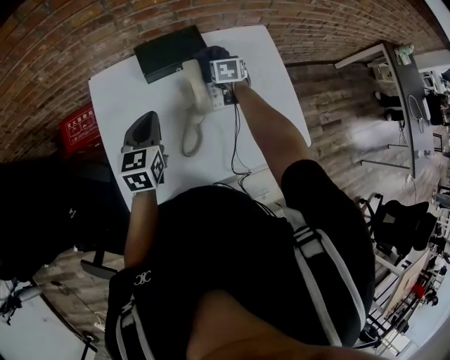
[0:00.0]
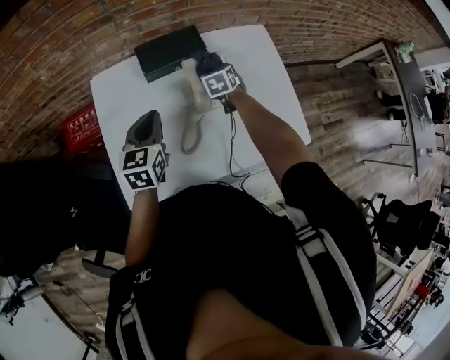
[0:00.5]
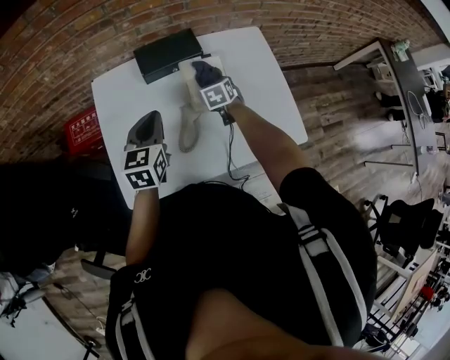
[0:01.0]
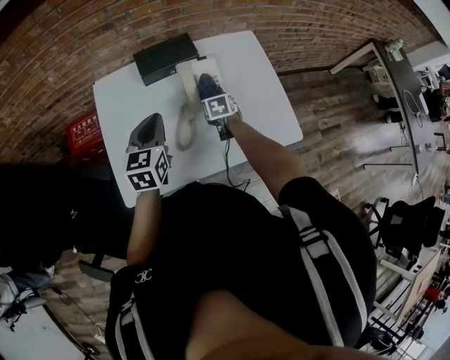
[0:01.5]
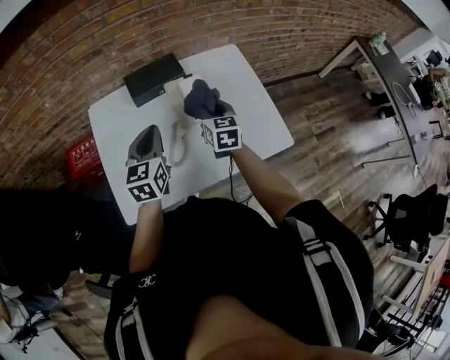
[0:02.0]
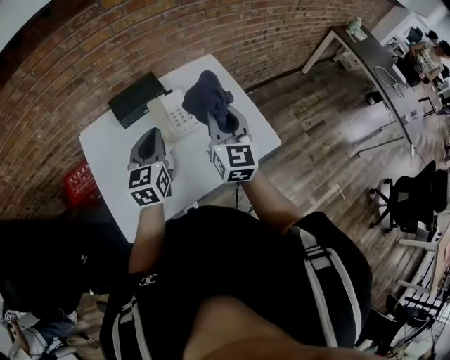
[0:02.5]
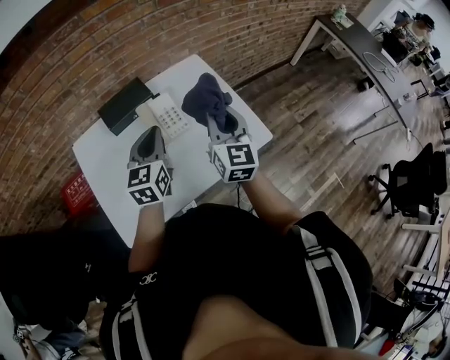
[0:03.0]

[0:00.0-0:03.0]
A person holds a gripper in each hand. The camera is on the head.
0:00.0 to 0:01.5: The right gripper moves backward, about 15 cm; the left gripper moves backward, some 5 cm.
0:01.5 to 0:03.0: The right gripper shifts some 35 cm upward and to the right, and tips its fingers upward by some 50 degrees; the left gripper is displaced to the right and upward by roughly 15 cm.

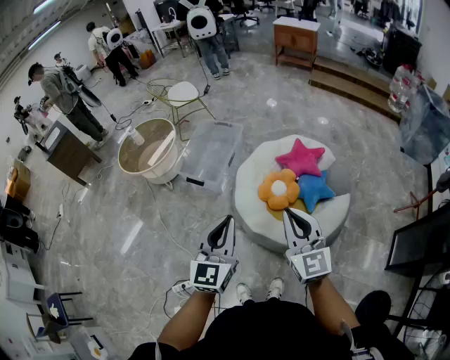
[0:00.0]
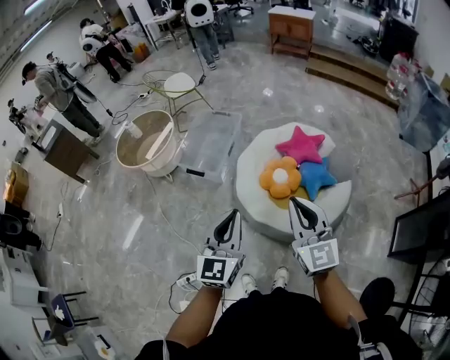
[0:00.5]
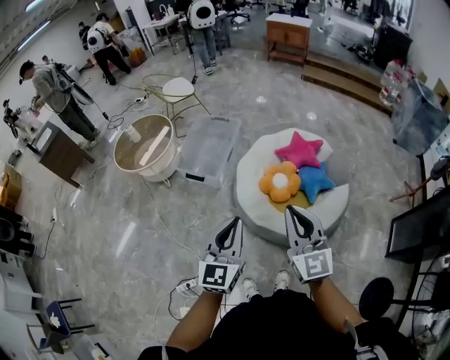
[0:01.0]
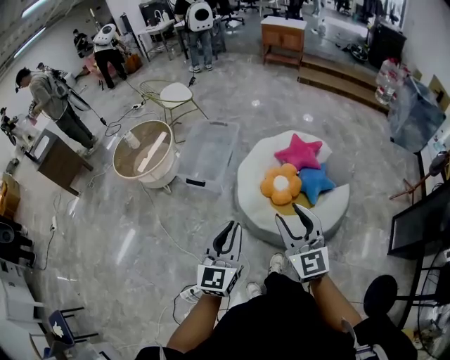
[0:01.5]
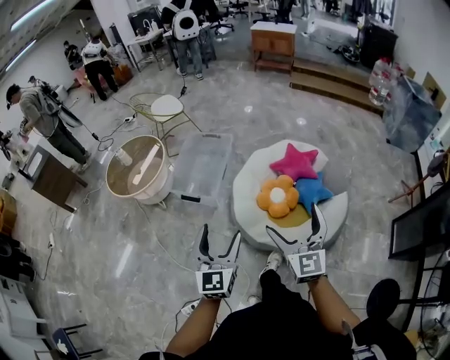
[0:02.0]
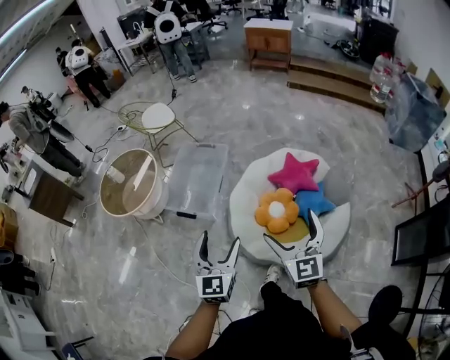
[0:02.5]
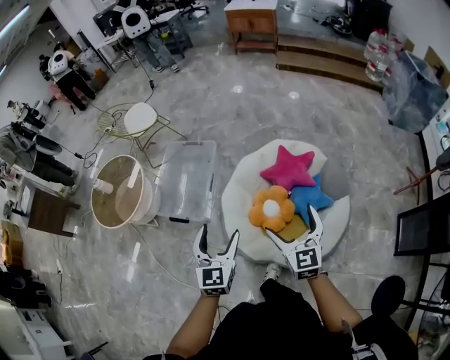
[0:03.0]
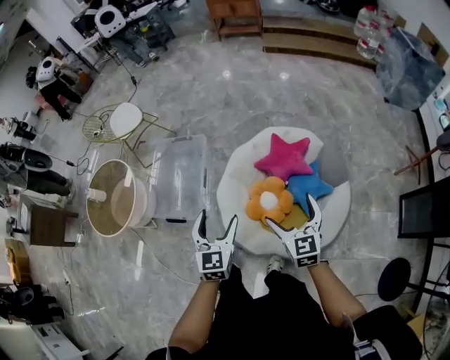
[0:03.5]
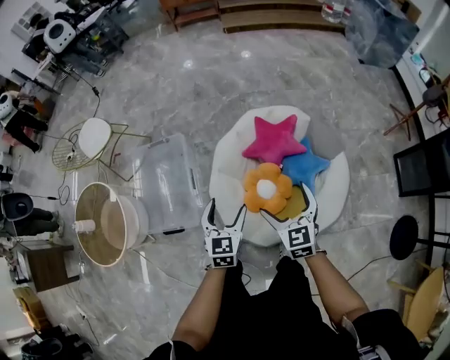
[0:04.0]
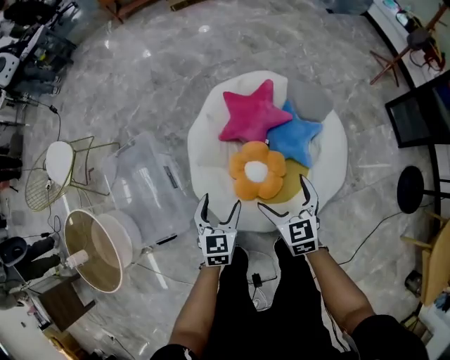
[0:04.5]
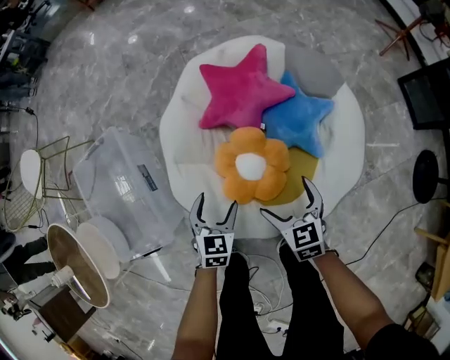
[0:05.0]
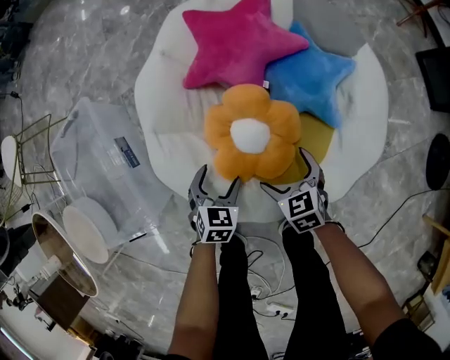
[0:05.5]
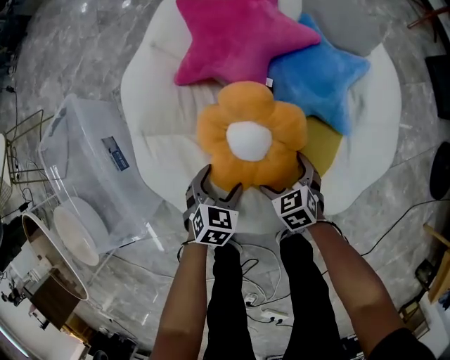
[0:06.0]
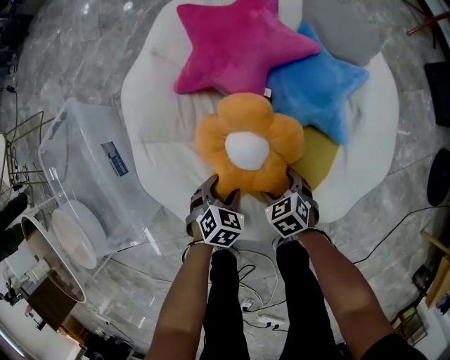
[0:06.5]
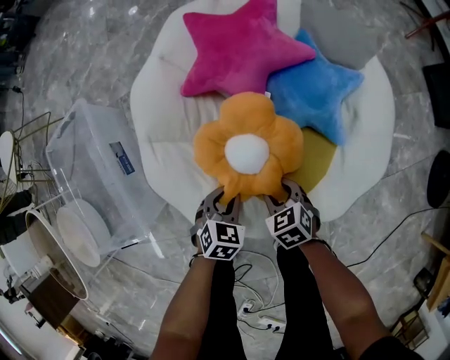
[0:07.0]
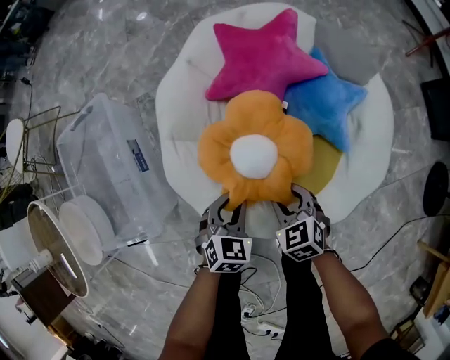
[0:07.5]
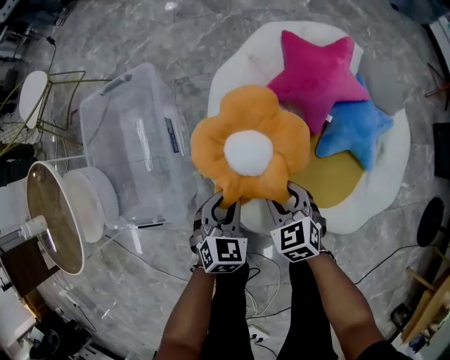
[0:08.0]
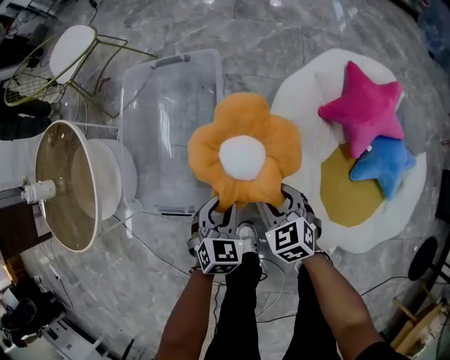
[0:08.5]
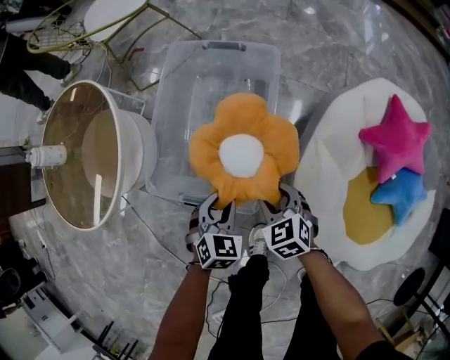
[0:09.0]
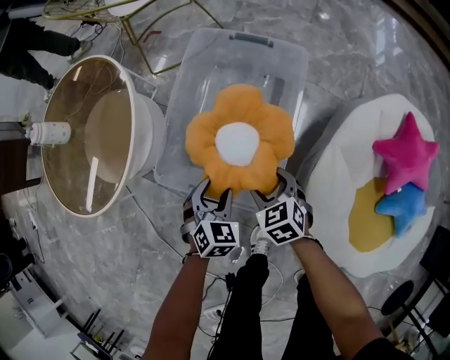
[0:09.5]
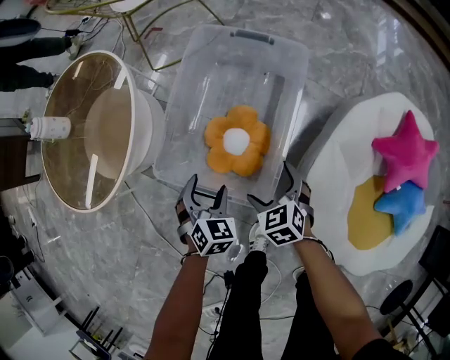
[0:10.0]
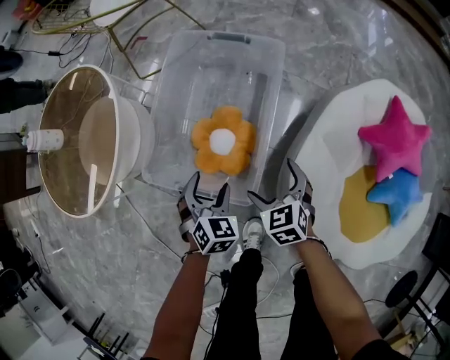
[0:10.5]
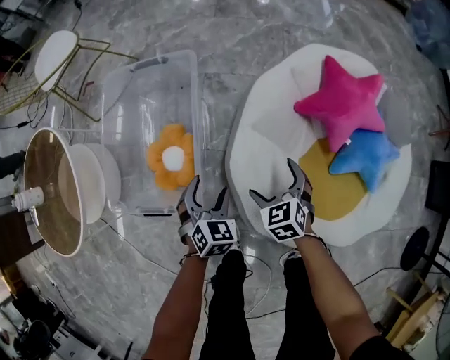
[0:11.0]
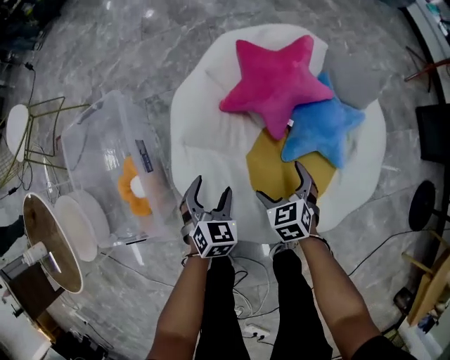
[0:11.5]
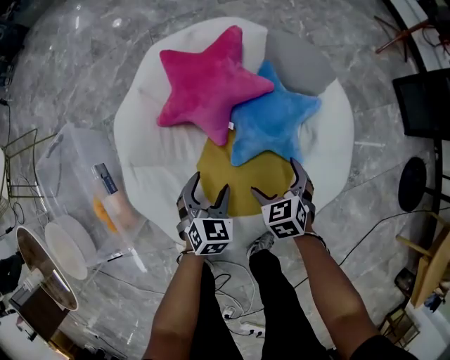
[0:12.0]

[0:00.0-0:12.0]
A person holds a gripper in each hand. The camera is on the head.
0:00.0 to 0:02.0: The right gripper travels to the left and forward by approximately 10 cm, and opens. The left gripper travels to the left, forward and downward by roughly 15 cm, and opens up.
0:02.0 to 0:04.0: The pair of grippers is taken forward, roughly 50 cm. The two grippers go about 25 cm downward. The left gripper swivels some 40 degrees. The right gripper changes its angle by about 30 degrees.
0:04.0 to 0:06.0: Both grippers travel together downward, about 70 cm. The right gripper angles its fingers downward, by about 30 degrees, while the left gripper points its fingers roughly 30 degrees further downward.
0:06.0 to 0:08.0: The left gripper travels upward and to the left by about 25 cm, changes its angle by roughly 20 degrees, and closes. The right gripper moves to the left and upward, some 30 cm, swivels some 20 degrees, and closes its fingers.
0:08.0 to 0:10.0: The pair of grippers is taken some 40 cm. The left gripper changes its angle by about 40 degrees, and opens up; the right gripper rotates some 30 degrees, and opens its fingers.
0:10.0 to 0:12.0: The two grippers travel together, some 70 cm. The right gripper rotates some 50 degrees. Meanwhile the left gripper swivels roughly 50 degrees.

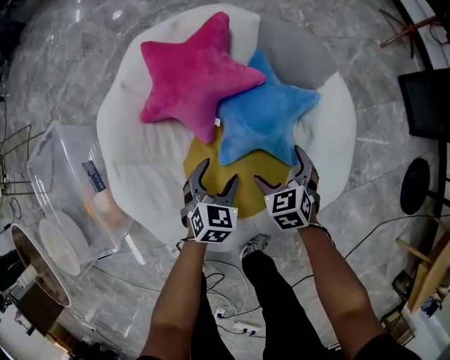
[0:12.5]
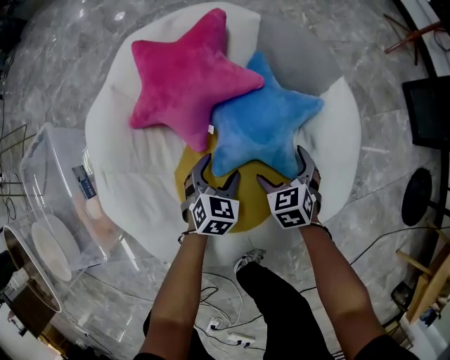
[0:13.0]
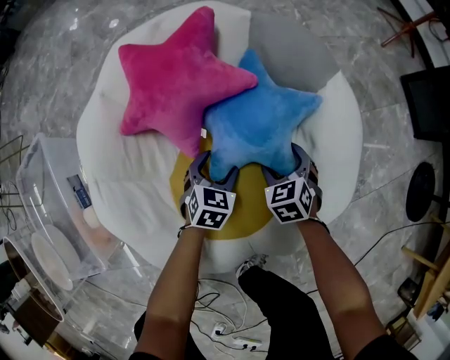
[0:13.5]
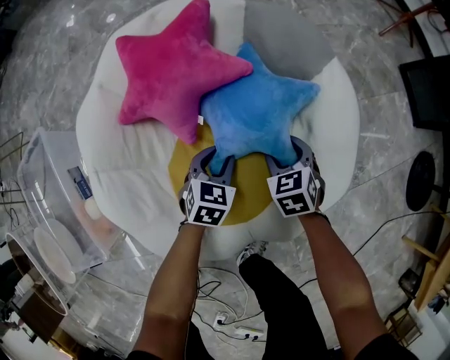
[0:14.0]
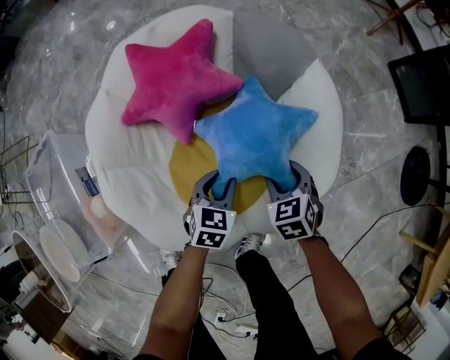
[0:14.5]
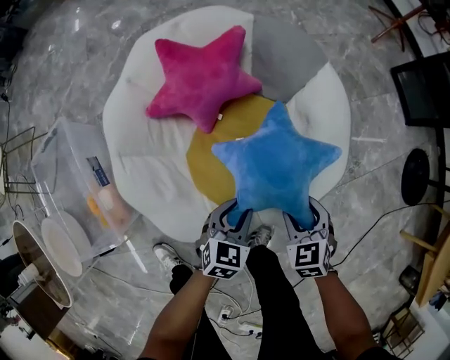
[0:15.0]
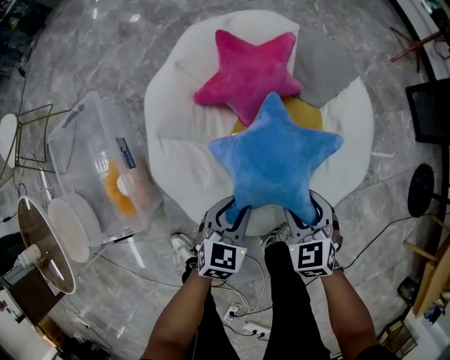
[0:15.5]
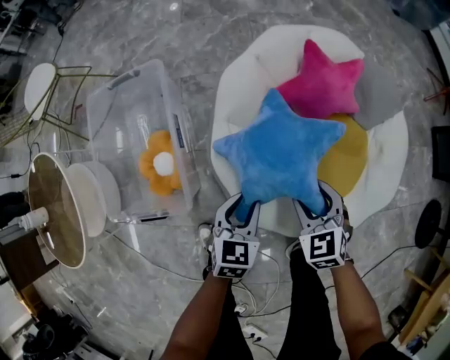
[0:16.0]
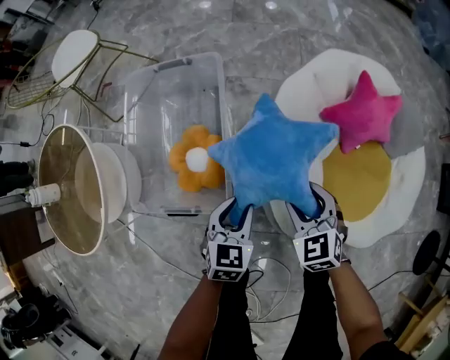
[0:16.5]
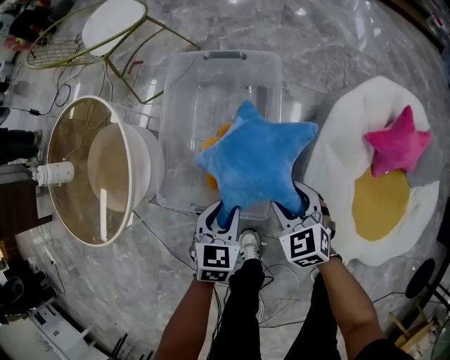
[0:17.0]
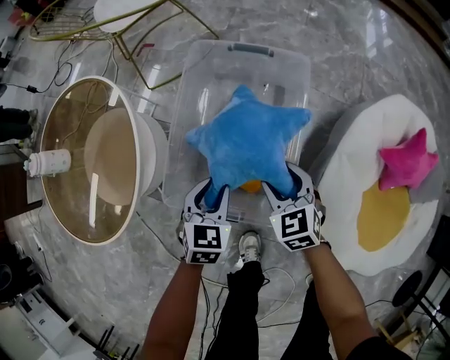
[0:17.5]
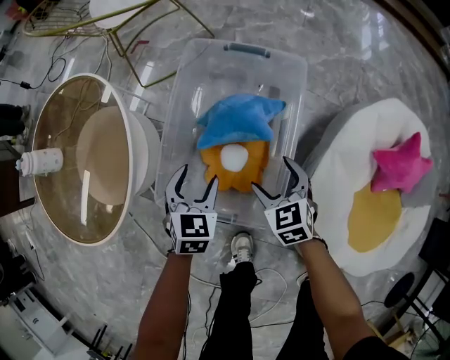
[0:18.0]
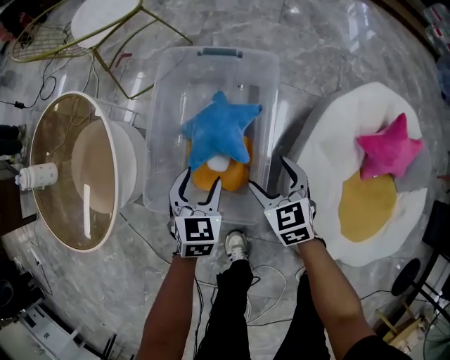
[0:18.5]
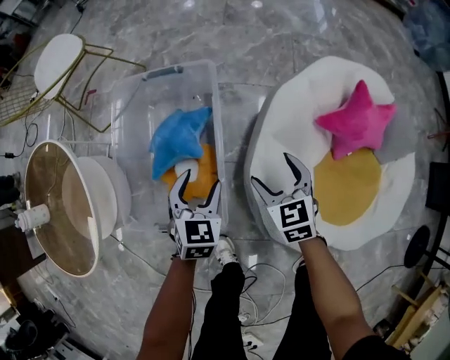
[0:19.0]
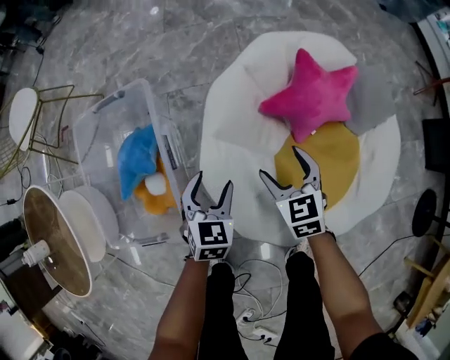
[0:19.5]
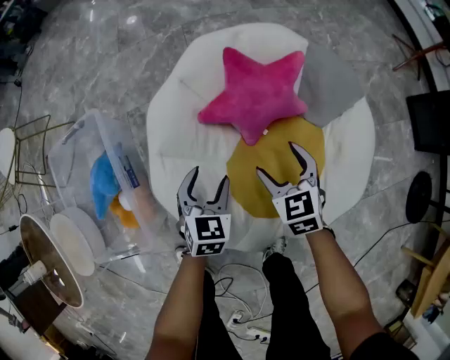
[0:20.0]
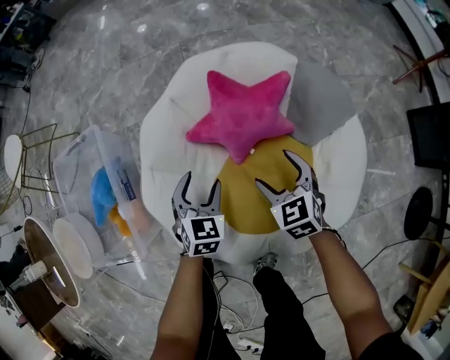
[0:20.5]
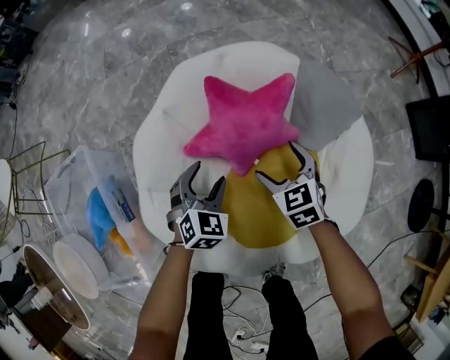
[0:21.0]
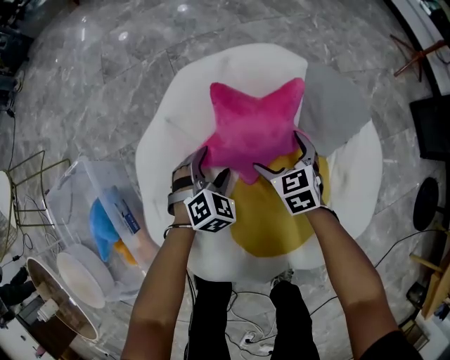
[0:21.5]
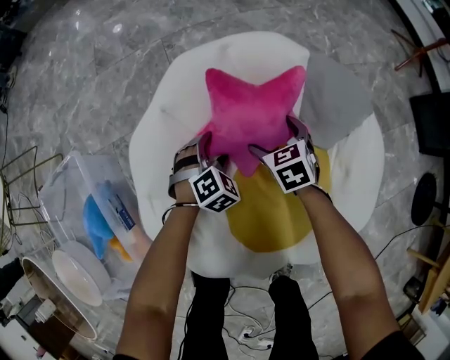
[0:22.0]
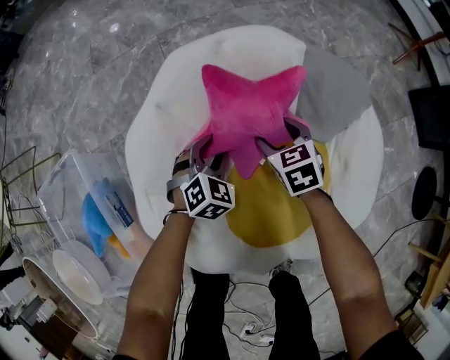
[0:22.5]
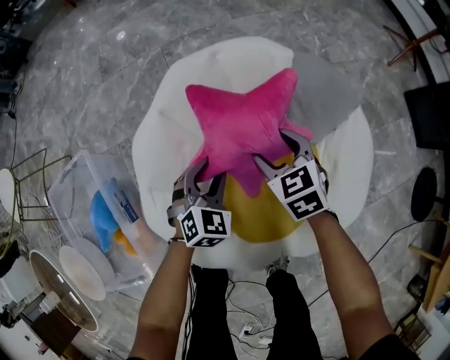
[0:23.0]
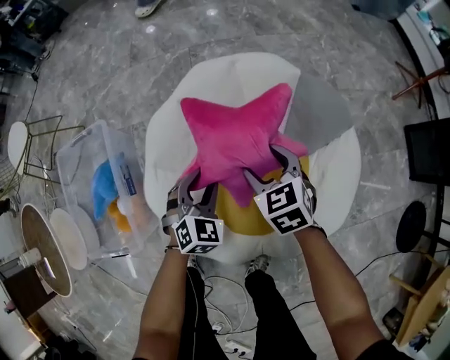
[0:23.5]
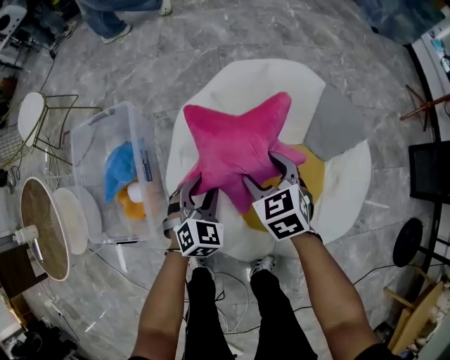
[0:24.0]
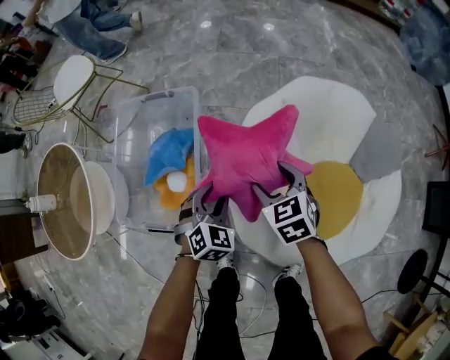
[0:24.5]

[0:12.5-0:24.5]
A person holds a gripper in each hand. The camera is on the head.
0:12.5 to 0:14.5: The grippers both shift to the right by about 5 cm. The left gripper travels downward and back again, some 10 cm each way, and closes; the right gripper moves some 10 cm downward and comes back, and closes.
0:14.5 to 0:16.5: The two grippers travel together, approximately 60 cm. The left gripper rotates some 30 degrees. The right gripper rotates about 40 degrees.
0:16.5 to 0:18.5: Both grippers travel together to the left and forward, roughly 30 cm. The left gripper opens its fingers.
0:18.5 to 0:20.5: The pair of grippers is taken approximately 70 cm. The right gripper turns by some 20 degrees. The left gripper changes its angle by some 30 degrees.
0:20.5 to 0:22.5: Both grippers move forward and downward, about 20 cm. The left gripper swivels some 30 degrees.
0:22.5 to 0:24.5: The right gripper moves roughly 50 cm, and changes its angle by about 30 degrees, while the left gripper changes place by approximately 50 cm, and swivels approximately 30 degrees.
